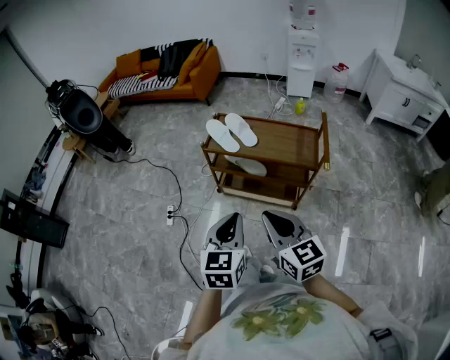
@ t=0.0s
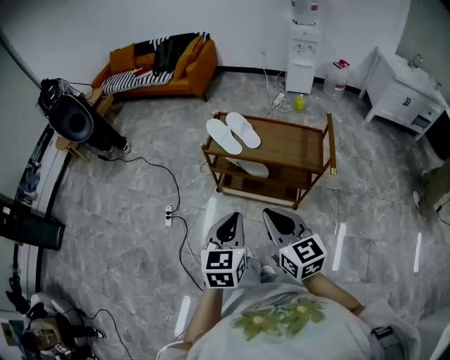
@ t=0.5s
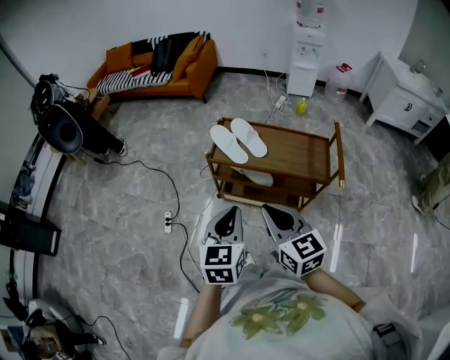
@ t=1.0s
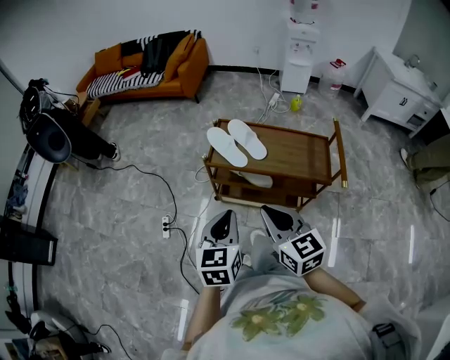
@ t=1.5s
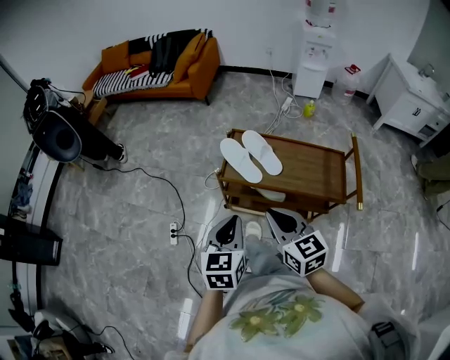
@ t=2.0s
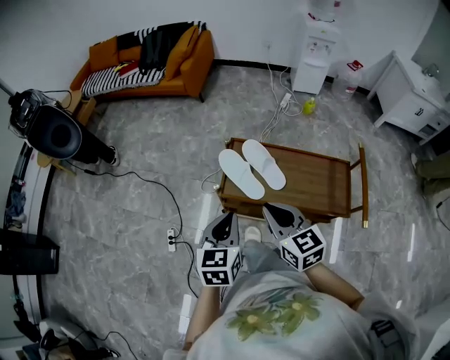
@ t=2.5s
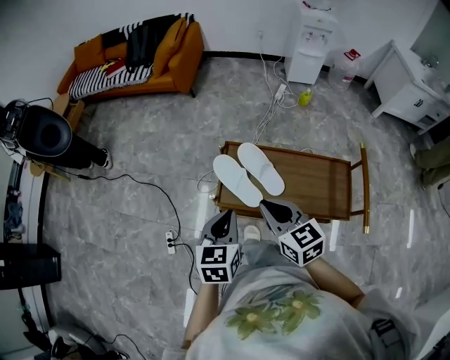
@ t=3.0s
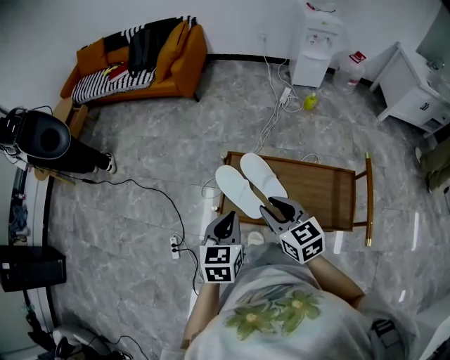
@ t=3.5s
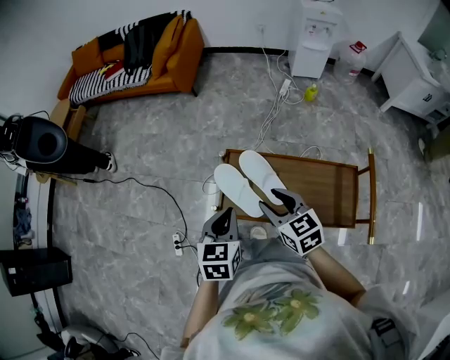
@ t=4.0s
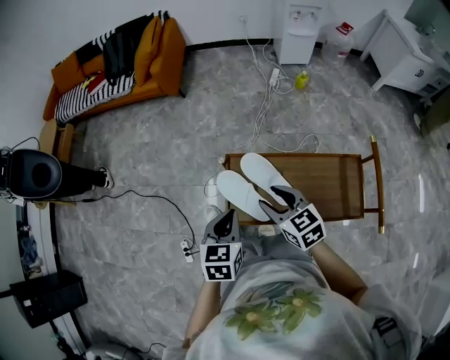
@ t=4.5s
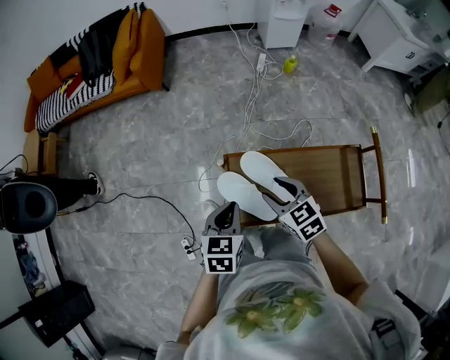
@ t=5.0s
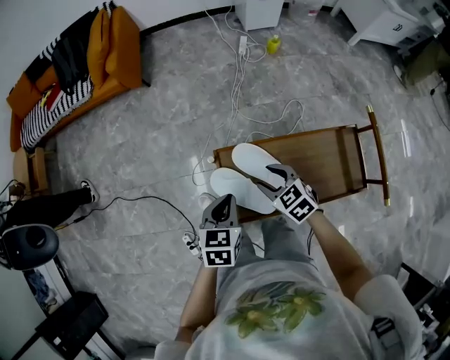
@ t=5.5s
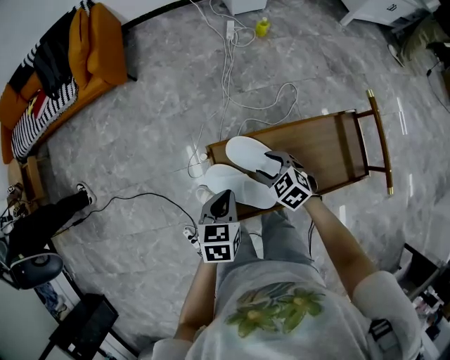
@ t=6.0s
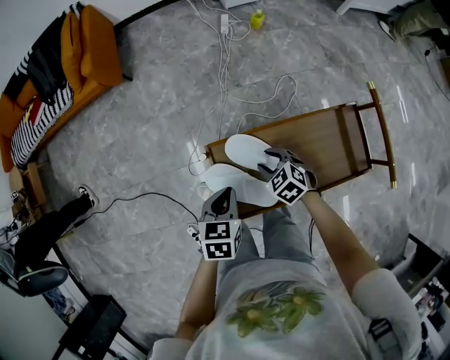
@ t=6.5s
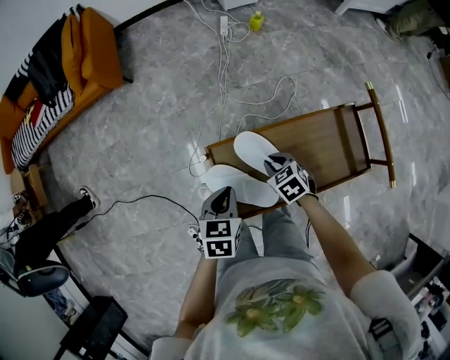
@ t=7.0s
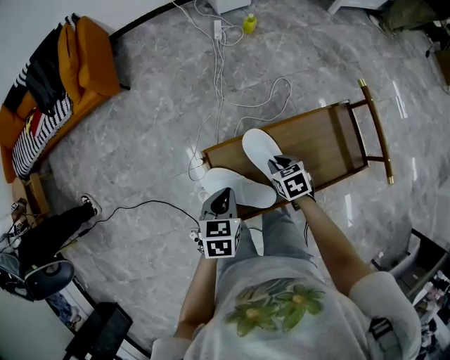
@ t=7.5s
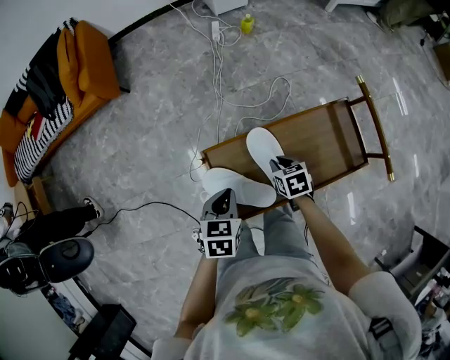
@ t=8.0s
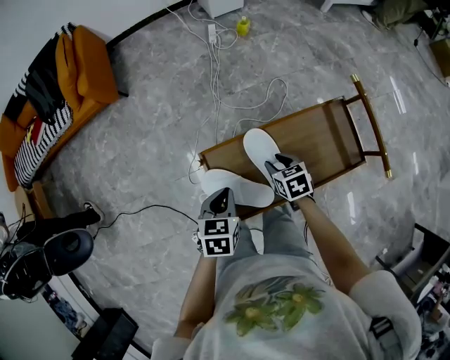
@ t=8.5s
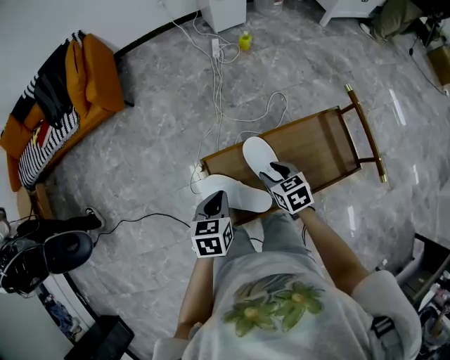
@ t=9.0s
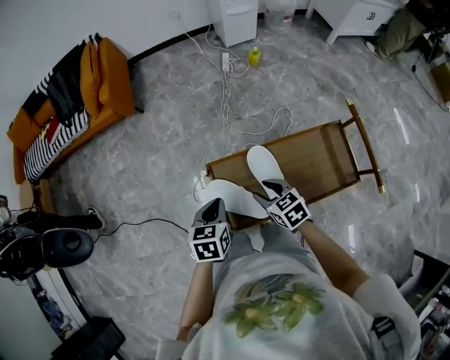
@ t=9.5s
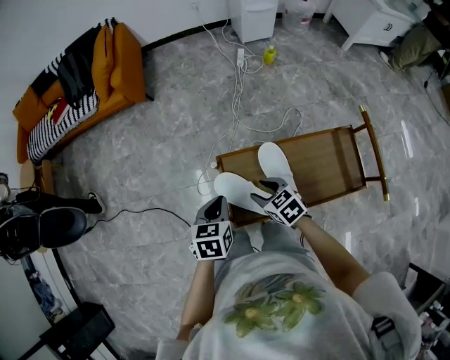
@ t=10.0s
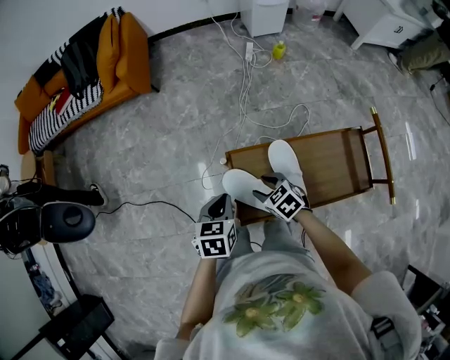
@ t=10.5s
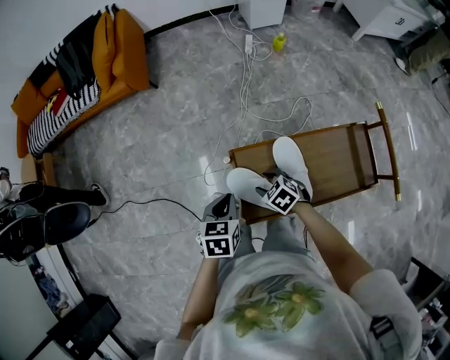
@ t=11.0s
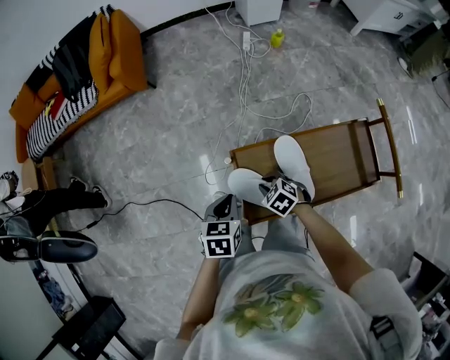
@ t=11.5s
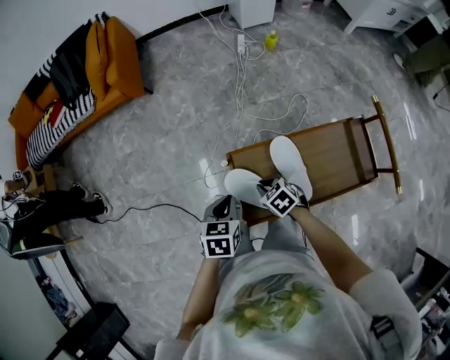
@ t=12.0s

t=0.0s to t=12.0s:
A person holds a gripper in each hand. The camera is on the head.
t=0.0s to t=2.0s: Both grippers travel together forward, roughly 25 cm.
t=2.0s to t=4.0s: Both grippers move forward, approximately 25 cm. The right gripper opens up.
t=4.0s to t=6.0s: Both grippers move downward and forward, approximately 20 cm. The right gripper changes its angle by about 30 degrees. Meanwhile the left gripper turns by approximately 30 degrees.
t=6.0s to t=8.0s: The right gripper shifts approximately 10 cm to the right, swivels some 40 degrees, and closes up.
t=8.0s to t=10.0s: The left gripper moves to the left, about 5 cm, while the right gripper moves to the left and upward, about 15 cm, turns by roughly 30 degrees, and opens.
t=10.0s to t=12.0s: The right gripper is displaced downward by about 5 cm, and closes.

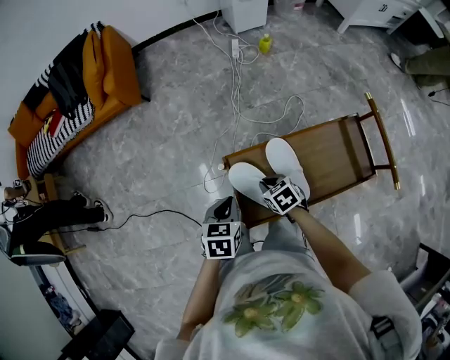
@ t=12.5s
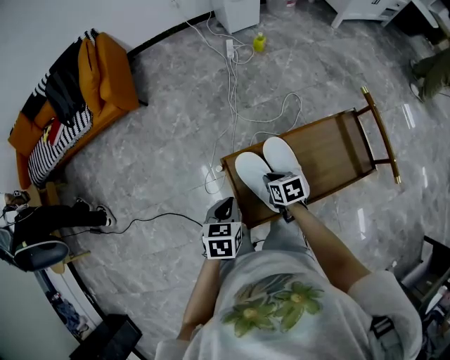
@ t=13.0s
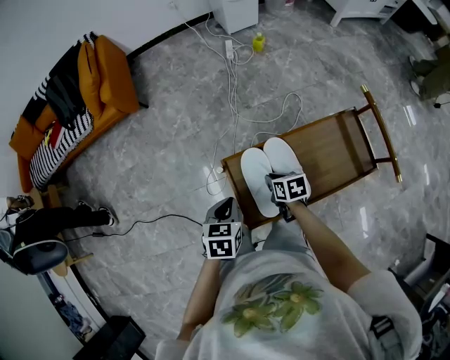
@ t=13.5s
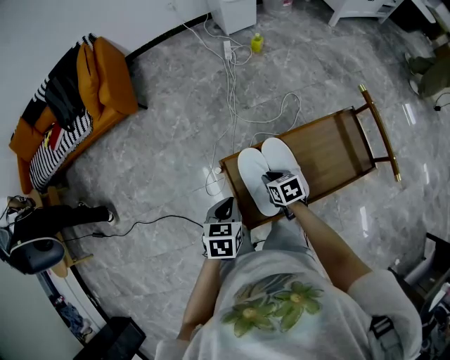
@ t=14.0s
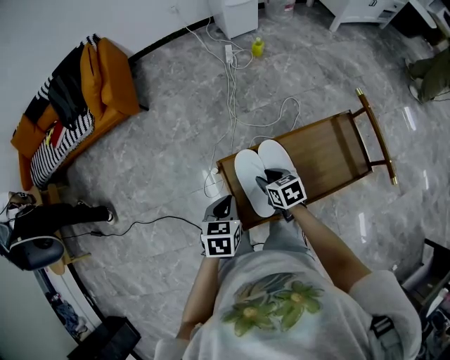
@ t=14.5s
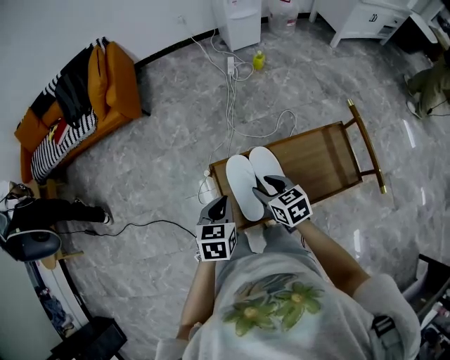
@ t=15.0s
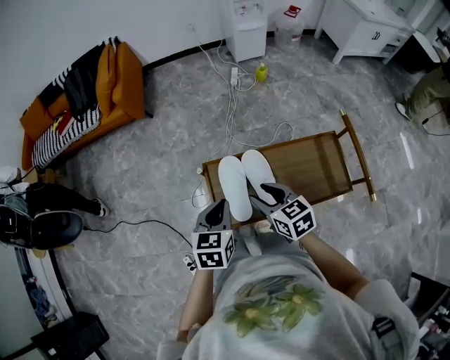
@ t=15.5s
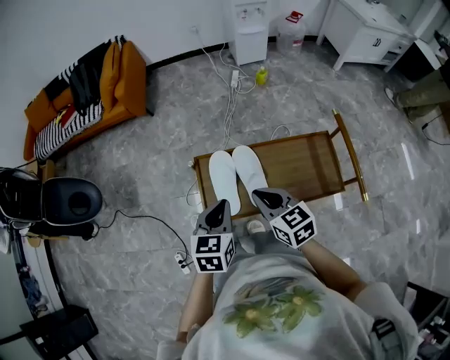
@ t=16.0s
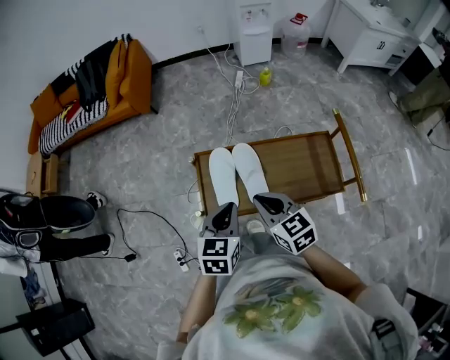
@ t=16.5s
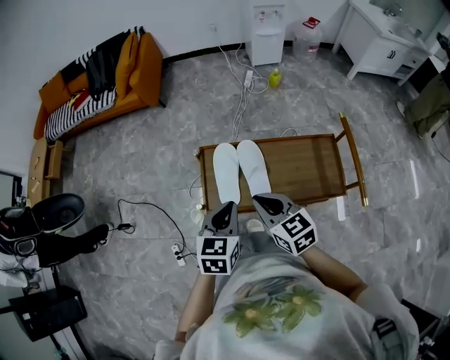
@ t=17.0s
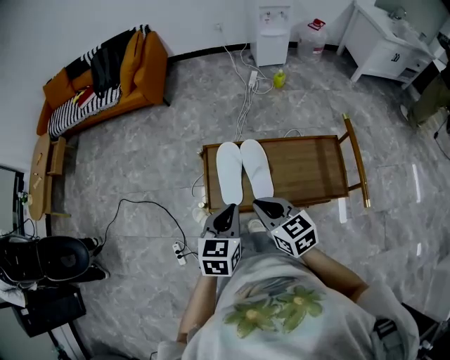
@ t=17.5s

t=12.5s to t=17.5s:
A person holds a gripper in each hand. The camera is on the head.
t=12.5s to t=15.0s: The right gripper shifts approximately 10 cm upward and to the right, turns by approximately 20 degrees, and opens. The left gripper goes about 5 cm to the right.
t=15.0s to t=17.5s: The left gripper travels backward, upward and to the right by roughly 15 cm; the right gripper shifts roughly 15 cm backward and upward, rotates about 20 degrees, and closes.

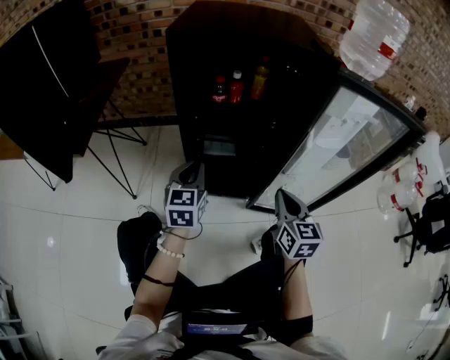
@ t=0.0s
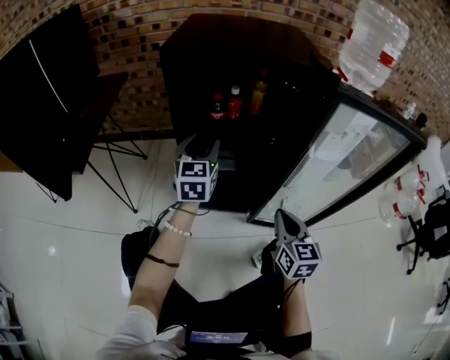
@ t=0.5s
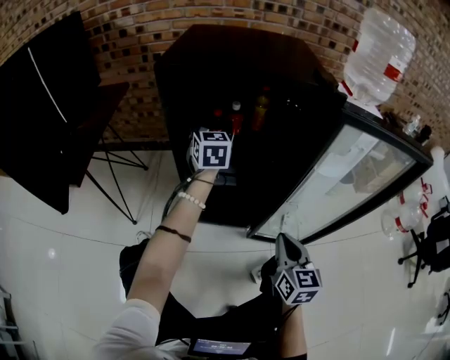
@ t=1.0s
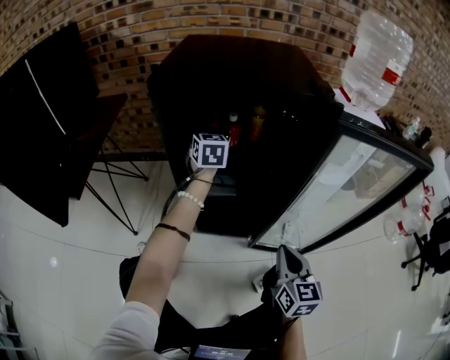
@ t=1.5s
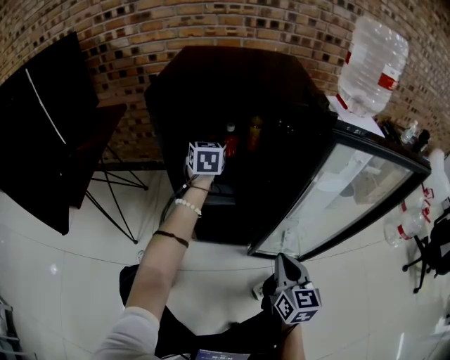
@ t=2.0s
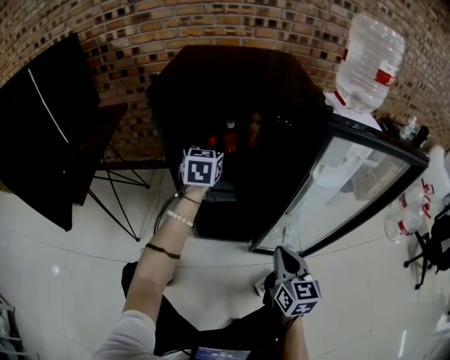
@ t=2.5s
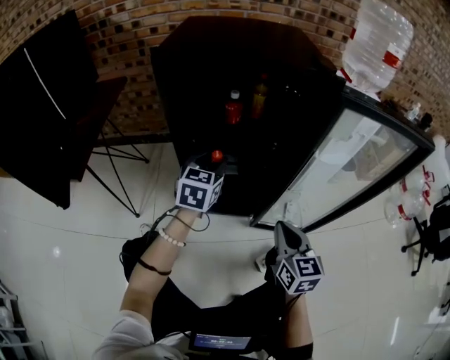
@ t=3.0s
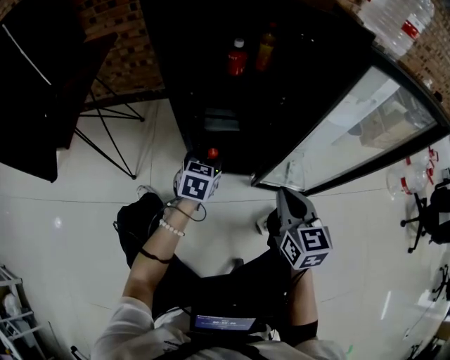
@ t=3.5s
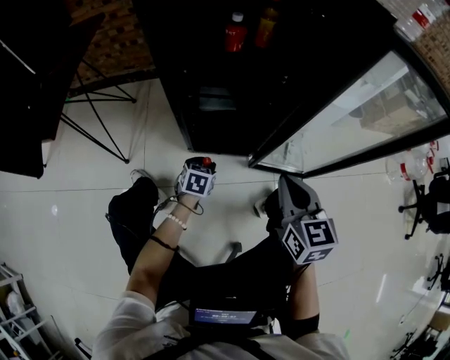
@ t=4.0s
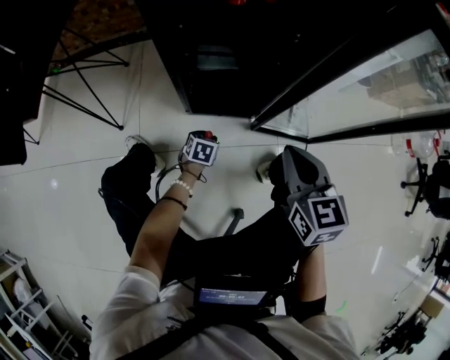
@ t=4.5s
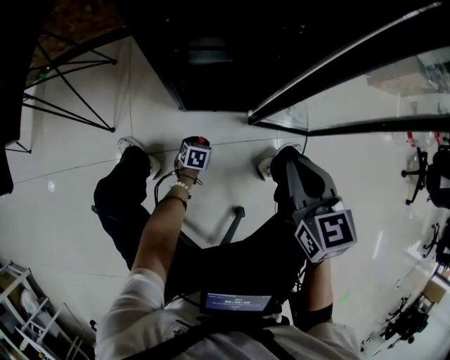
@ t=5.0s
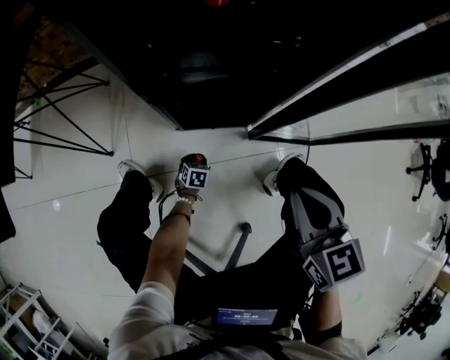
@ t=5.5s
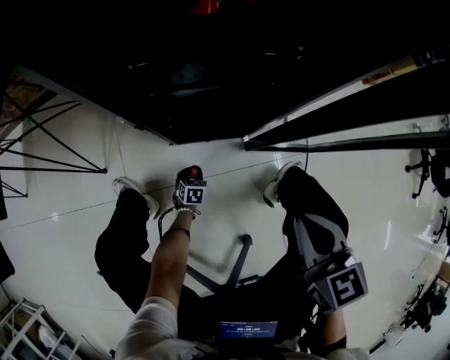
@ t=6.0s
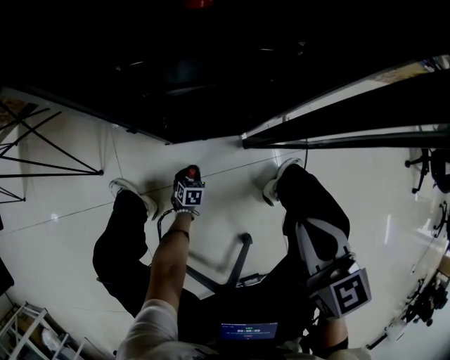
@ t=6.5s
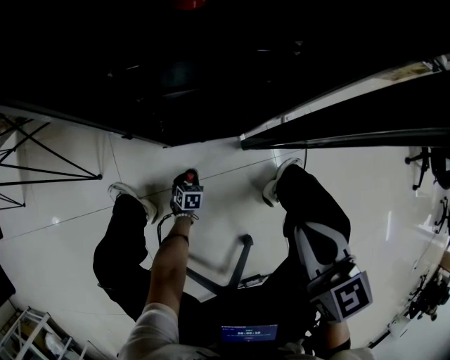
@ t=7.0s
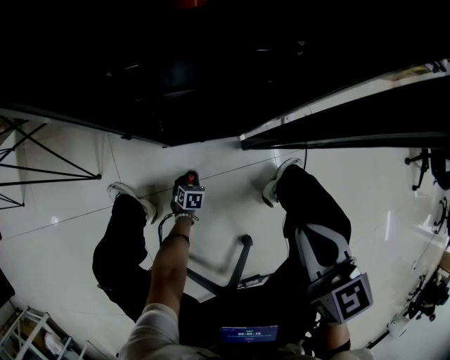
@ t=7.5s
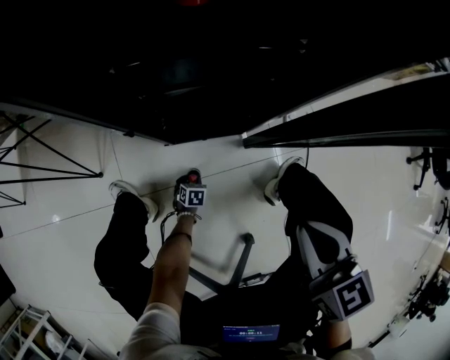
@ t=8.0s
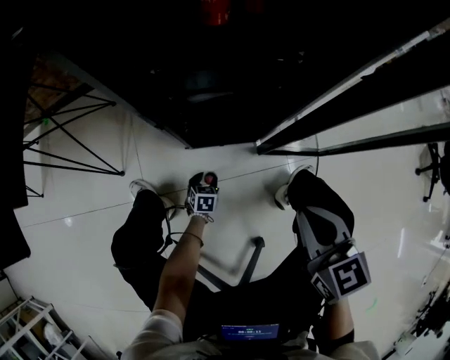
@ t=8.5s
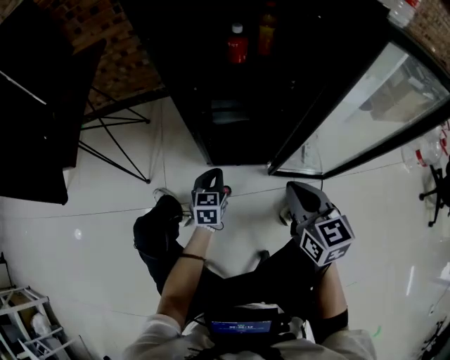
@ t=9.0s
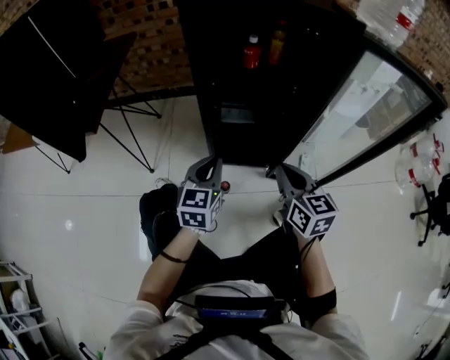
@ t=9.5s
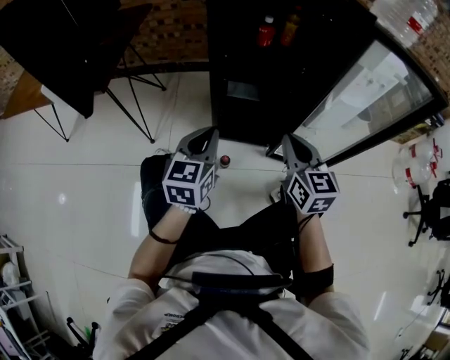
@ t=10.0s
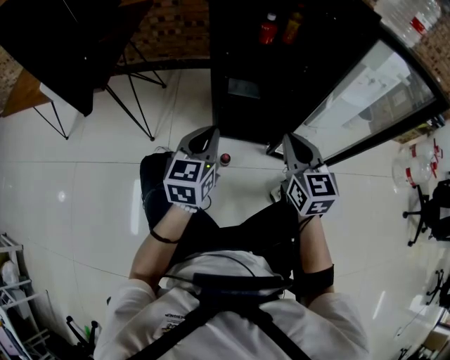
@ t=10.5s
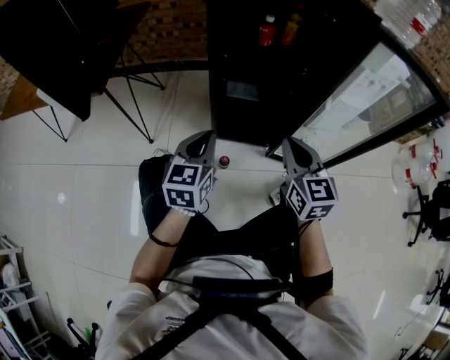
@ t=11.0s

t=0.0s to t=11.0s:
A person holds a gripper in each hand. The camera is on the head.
t=0.0s to t=2.0s: The left gripper is displaced forward by approximately 30 cm, and opens.
t=2.0s to t=3.5s: The left gripper goes some 30 cm backward and downward, and rotates roughly 30 degrees.
t=3.5s to t=5.5s: The left gripper shifts some 40 cm downward, and rotates some 30 degrees, while the right gripper goes approximately 5 cm downward.
t=5.5s to t=7.5s: The left gripper is displaced downward by some 10 cm.
t=7.5s to t=9.0s: The left gripper travels upward by roughly 40 cm, tilts its fingers roughly 40 degrees upward, and closes its fingers; the right gripper goes some 5 cm upward.
t=9.0s to t=11.0s: The right gripper is displaced upward by about 5 cm; the left gripper moves upward and backward, about 25 cm.
